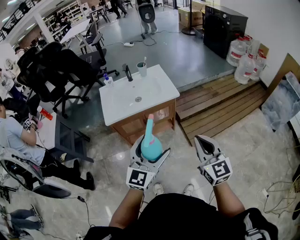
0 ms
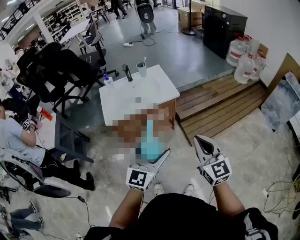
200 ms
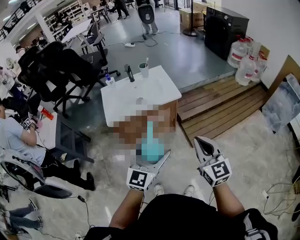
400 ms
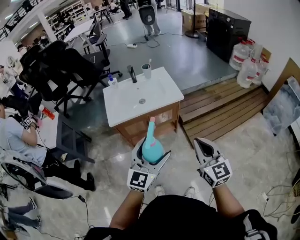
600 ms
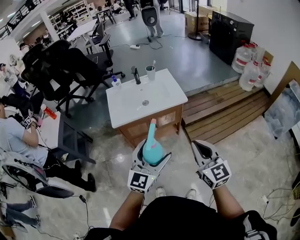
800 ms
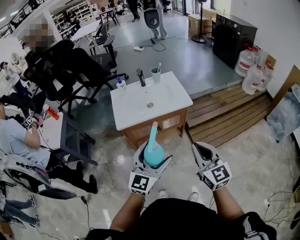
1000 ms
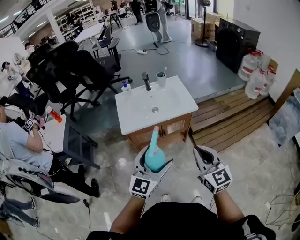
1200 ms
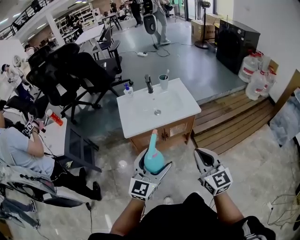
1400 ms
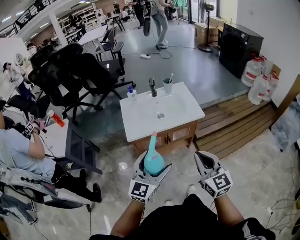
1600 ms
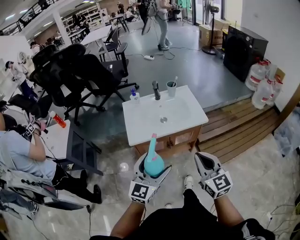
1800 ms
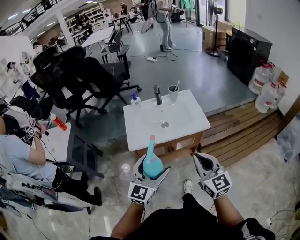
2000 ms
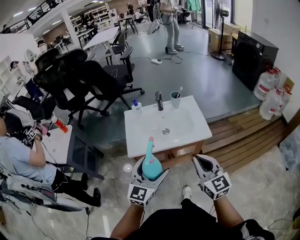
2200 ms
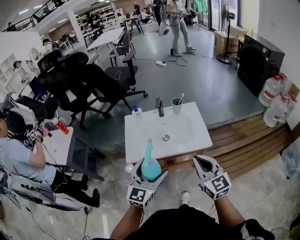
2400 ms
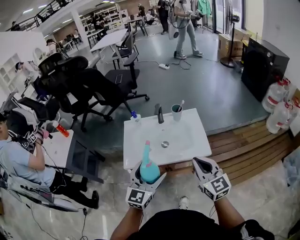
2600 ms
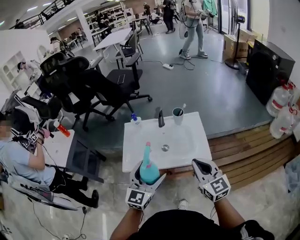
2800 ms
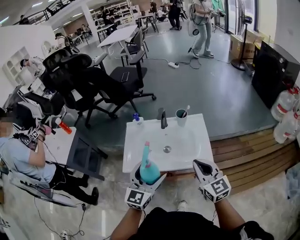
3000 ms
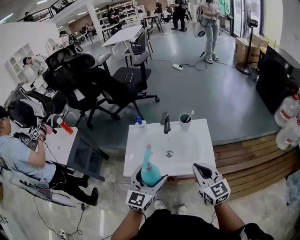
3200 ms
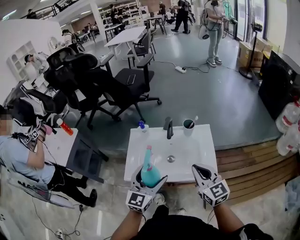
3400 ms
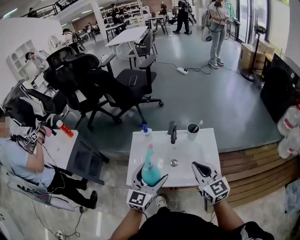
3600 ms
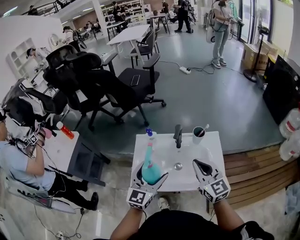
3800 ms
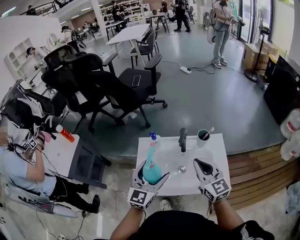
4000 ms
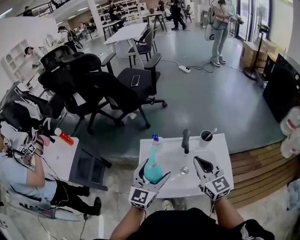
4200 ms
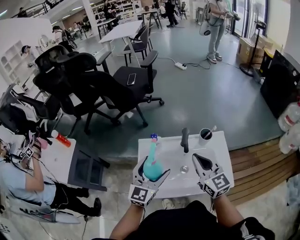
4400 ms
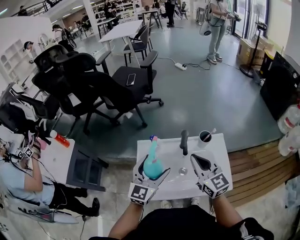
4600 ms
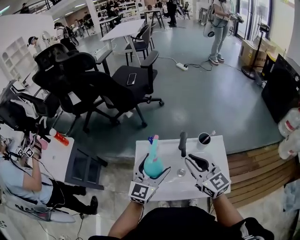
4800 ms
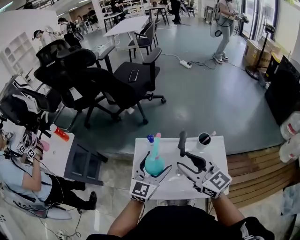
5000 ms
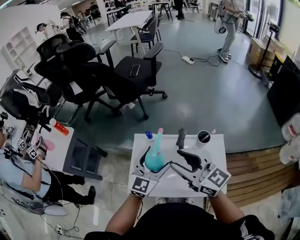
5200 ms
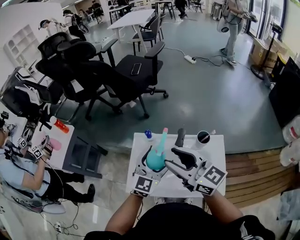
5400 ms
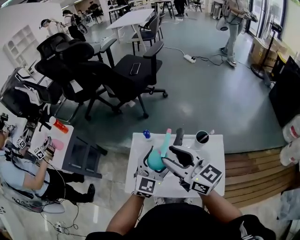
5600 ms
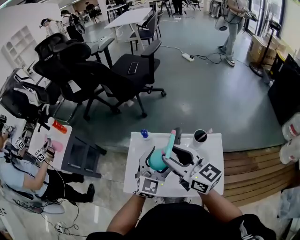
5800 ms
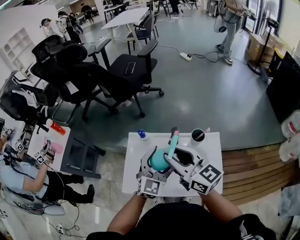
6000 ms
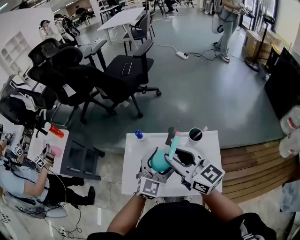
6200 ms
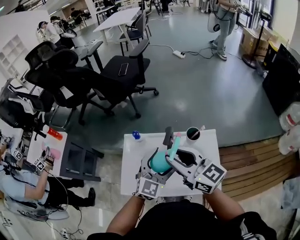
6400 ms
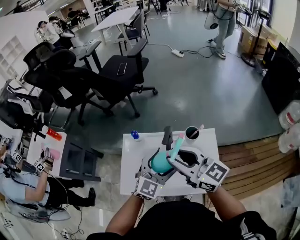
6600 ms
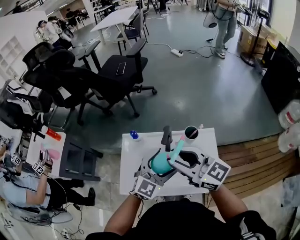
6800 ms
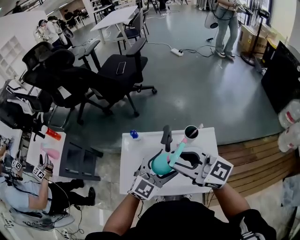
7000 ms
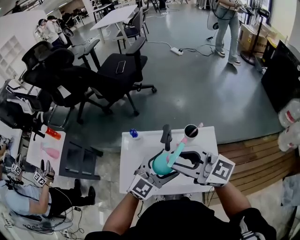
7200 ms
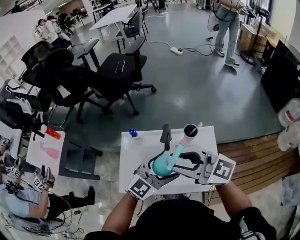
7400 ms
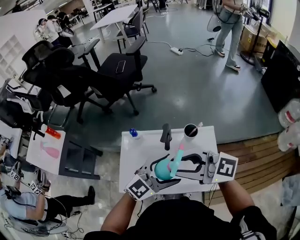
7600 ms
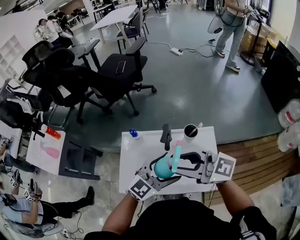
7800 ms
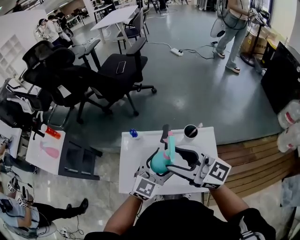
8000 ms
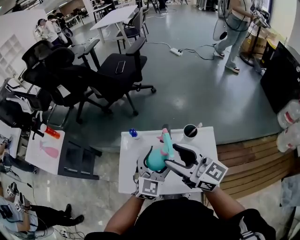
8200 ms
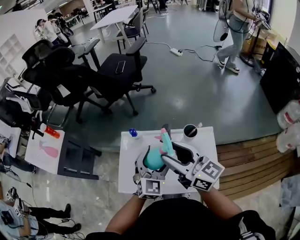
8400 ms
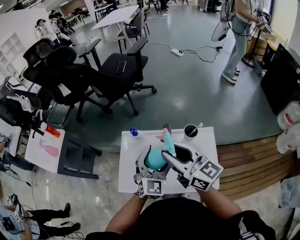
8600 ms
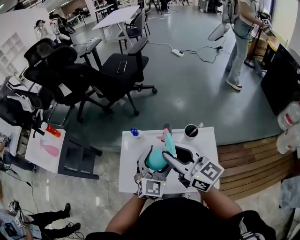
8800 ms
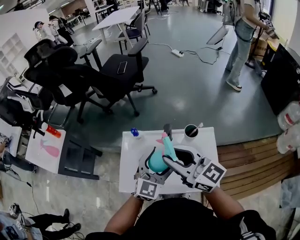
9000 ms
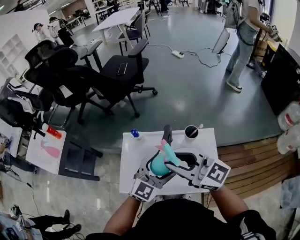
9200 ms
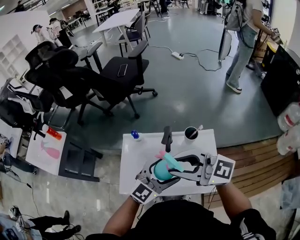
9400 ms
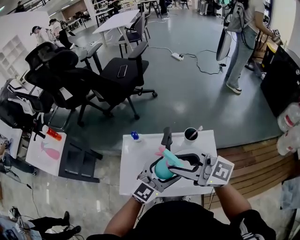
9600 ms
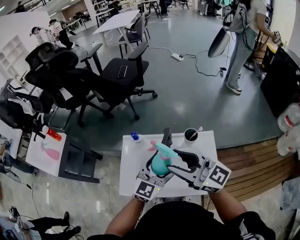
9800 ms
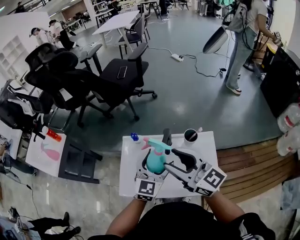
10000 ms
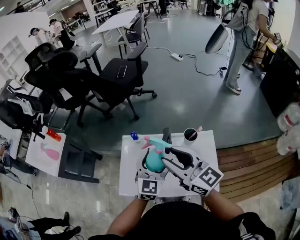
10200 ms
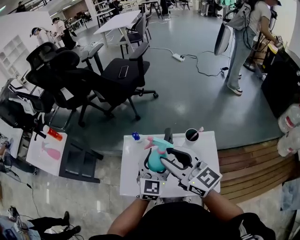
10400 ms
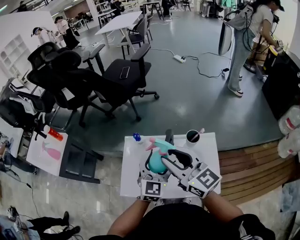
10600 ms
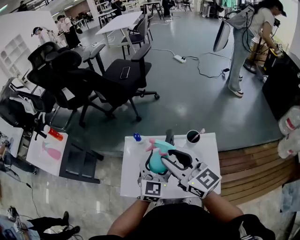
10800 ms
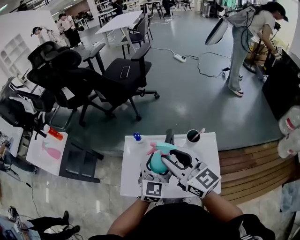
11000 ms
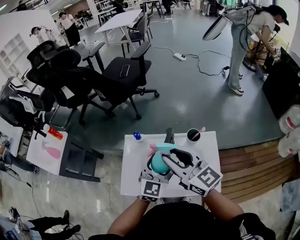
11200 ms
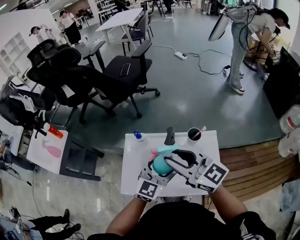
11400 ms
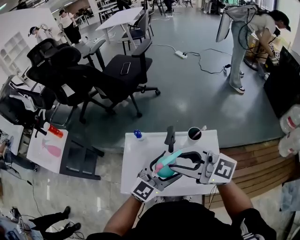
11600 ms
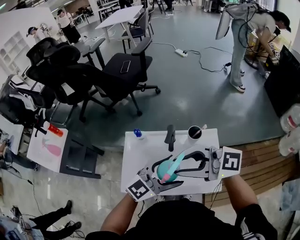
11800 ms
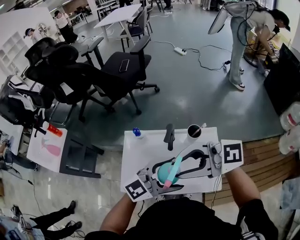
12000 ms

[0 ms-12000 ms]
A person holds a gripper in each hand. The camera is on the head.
0 ms to 1600 ms: Both grippers move to the left, some 15 cm.
1600 ms to 3000 ms: The two grippers go approximately 25 cm forward.
3000 ms to 4400 ms: Both grippers travel together forward and to the left, roughly 25 cm.
4400 ms to 6000 ms: The right gripper shifts by approximately 5 cm, changes its angle by about 30 degrees, and opens up; the left gripper shifts some 10 cm to the right.
6000 ms to 7600 ms: The left gripper moves approximately 10 cm, and changes its angle by some 40 degrees, while the right gripper shifts by approximately 10 cm, and changes its angle by about 30 degrees.
7600 ms to 9000 ms: The right gripper swivels about 30 degrees, and opens and closes again. Meanwhile the left gripper swivels roughly 30 degrees.
10400 ms to 12000 ms: The right gripper changes place by some 10 cm, and changes its angle by roughly 50 degrees. The left gripper shifts by about 15 cm, and rotates some 50 degrees.

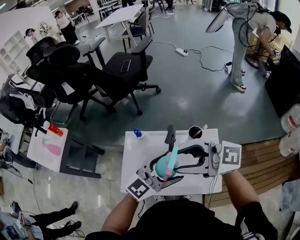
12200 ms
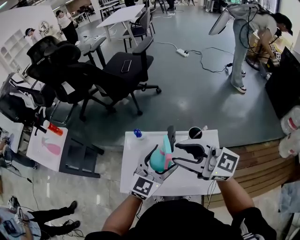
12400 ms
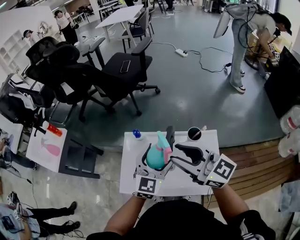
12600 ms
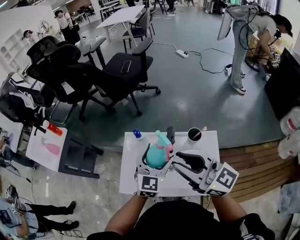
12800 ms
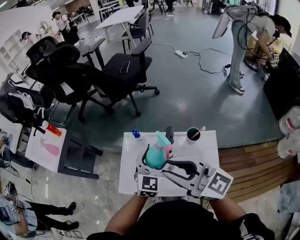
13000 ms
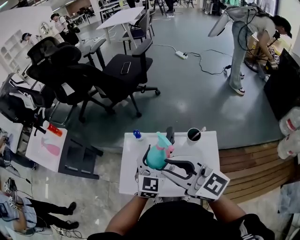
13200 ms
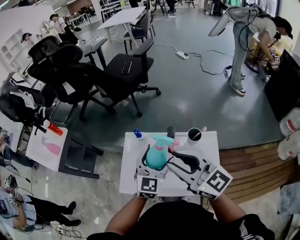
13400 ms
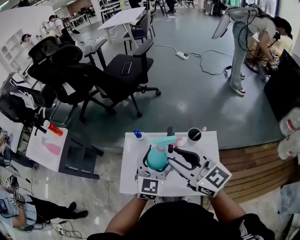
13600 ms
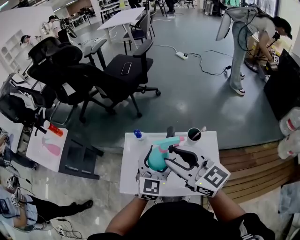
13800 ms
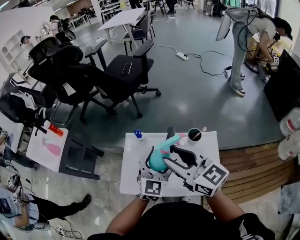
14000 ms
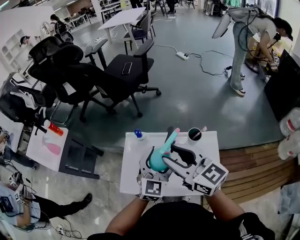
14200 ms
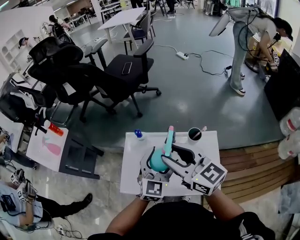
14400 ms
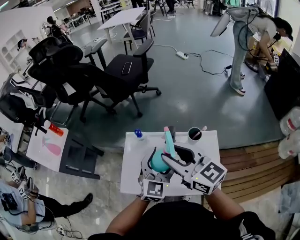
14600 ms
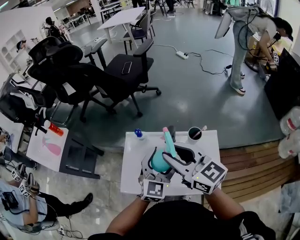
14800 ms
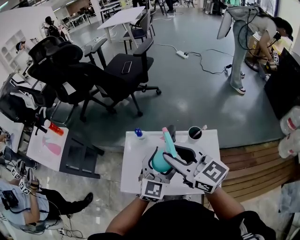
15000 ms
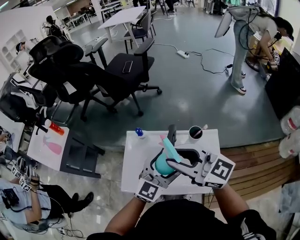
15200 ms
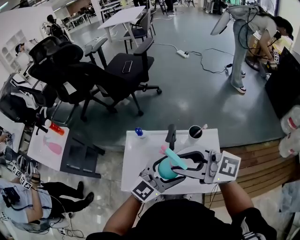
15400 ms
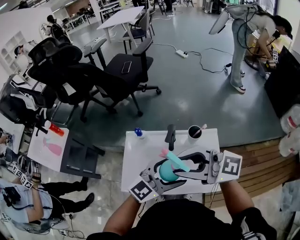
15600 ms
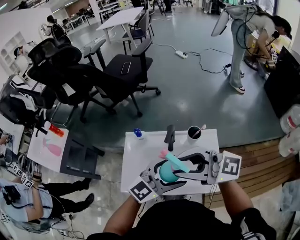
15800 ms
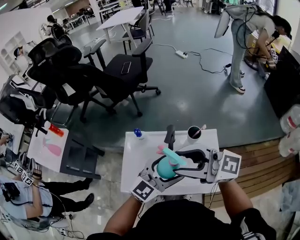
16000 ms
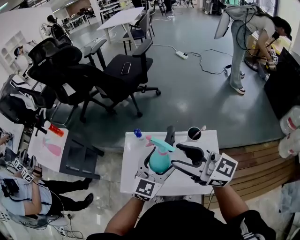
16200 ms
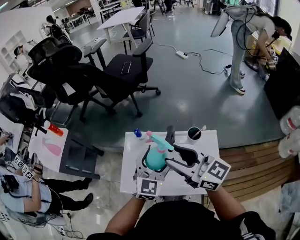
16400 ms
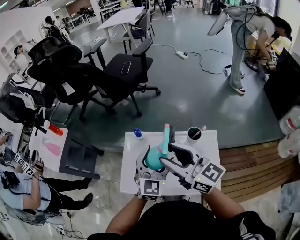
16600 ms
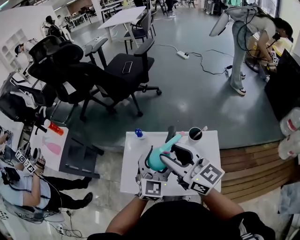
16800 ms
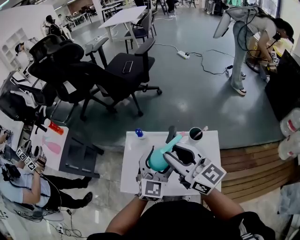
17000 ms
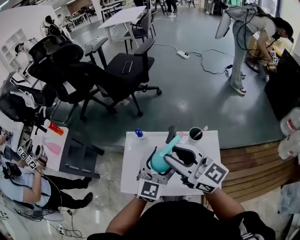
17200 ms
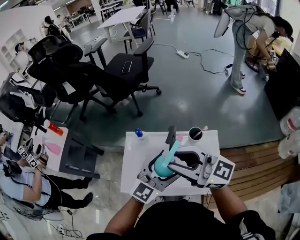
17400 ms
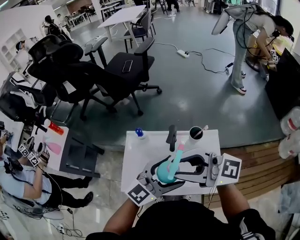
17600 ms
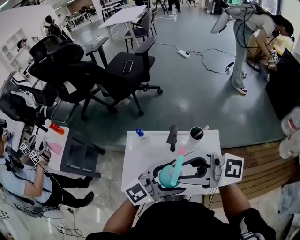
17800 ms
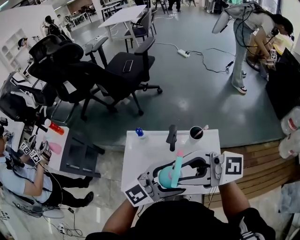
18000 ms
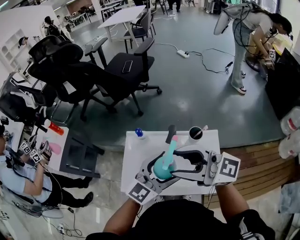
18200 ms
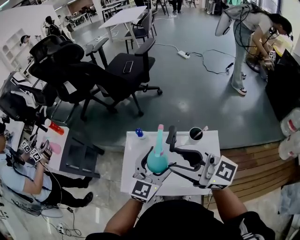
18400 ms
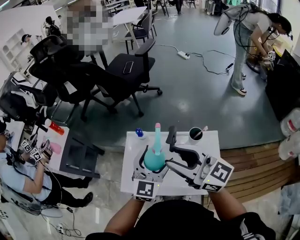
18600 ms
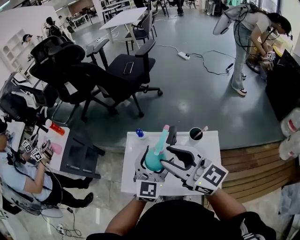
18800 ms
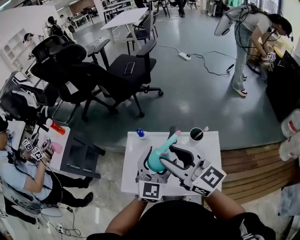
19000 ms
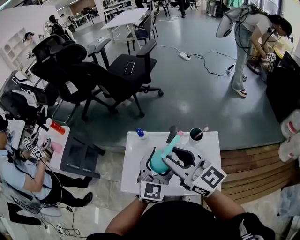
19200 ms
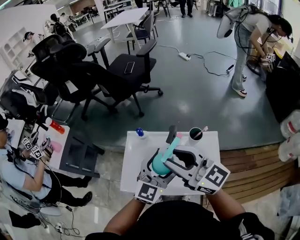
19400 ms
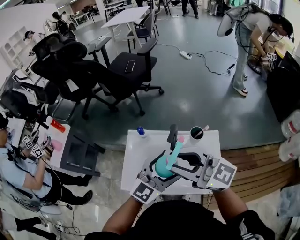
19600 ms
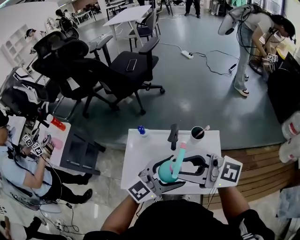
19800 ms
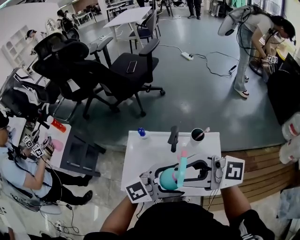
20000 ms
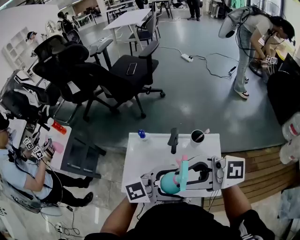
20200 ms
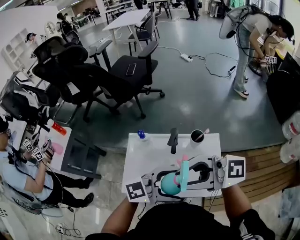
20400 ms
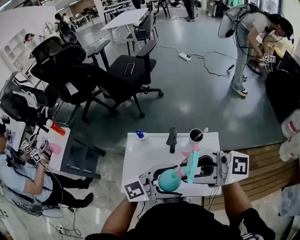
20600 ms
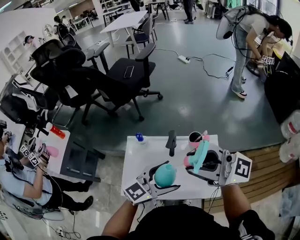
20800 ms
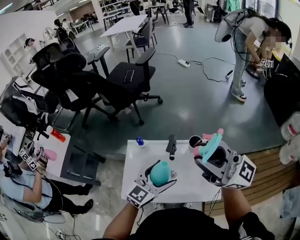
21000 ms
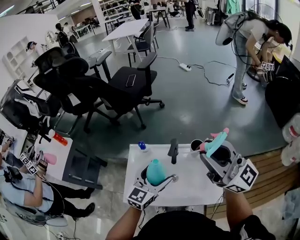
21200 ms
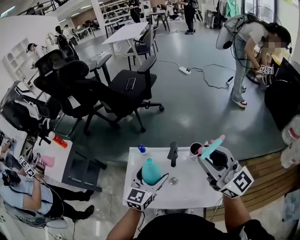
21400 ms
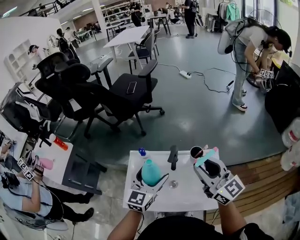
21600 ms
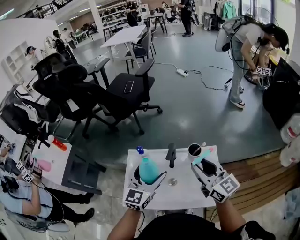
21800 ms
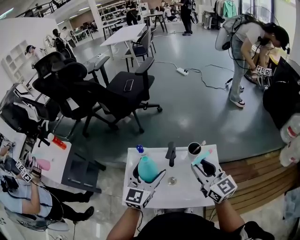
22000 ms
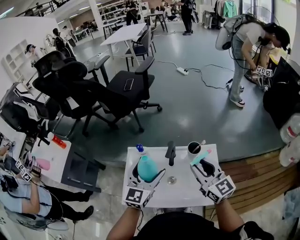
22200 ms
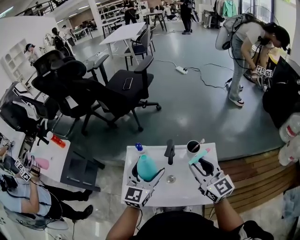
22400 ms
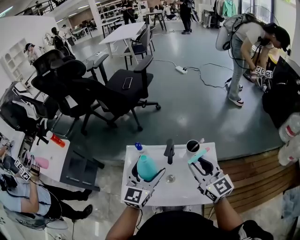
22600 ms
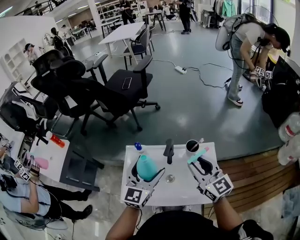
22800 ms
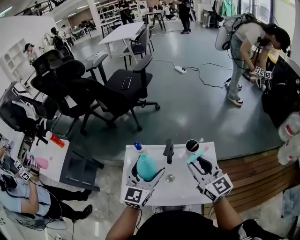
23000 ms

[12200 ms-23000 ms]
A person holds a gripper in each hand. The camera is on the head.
12200 ms to 13800 ms: The left gripper changes place by about 10 cm, and rotates roughly 40 degrees. Meanwhile the right gripper rotates roughly 40 degrees.
13800 ms to 15200 ms: The left gripper moves about 5 cm.
15200 ms to 16800 ms: The left gripper changes place by roughly 5 cm, and rotates roughly 20 degrees.
18400 ms to 20000 ms: The left gripper shifts by roughly 15 cm, and rotates some 40 degrees. Meanwhile the right gripper changes place by some 5 cm, and swivels approximately 20 degrees.
20000 ms to 21400 ms: The left gripper ends up roughly 15 cm from where it was, and turns by about 50 degrees. Meanwhile the right gripper ends up roughly 15 cm from where it was, and swivels roughly 50 degrees.
21400 ms to 23000 ms: The right gripper is displaced downward by approximately 10 cm.

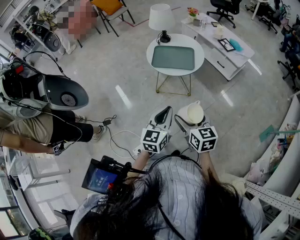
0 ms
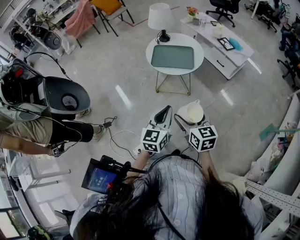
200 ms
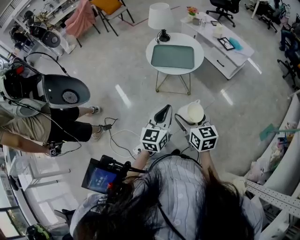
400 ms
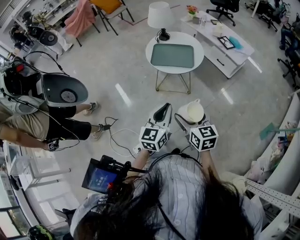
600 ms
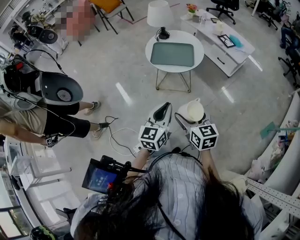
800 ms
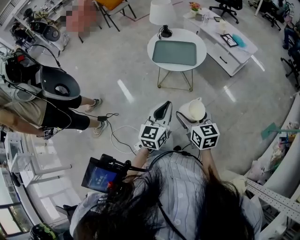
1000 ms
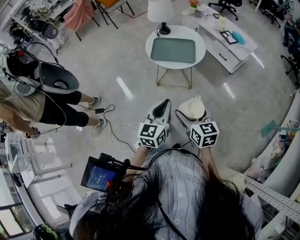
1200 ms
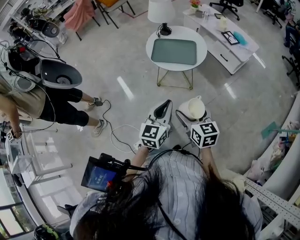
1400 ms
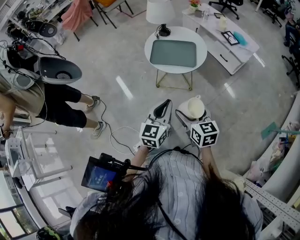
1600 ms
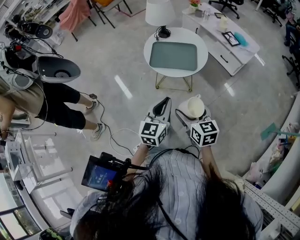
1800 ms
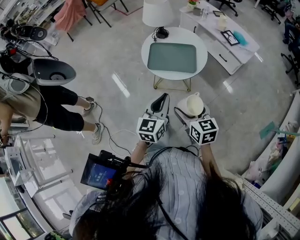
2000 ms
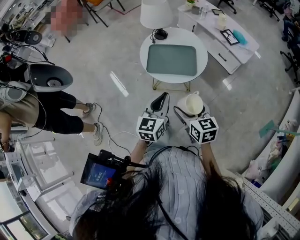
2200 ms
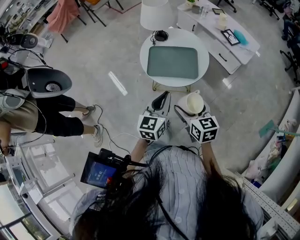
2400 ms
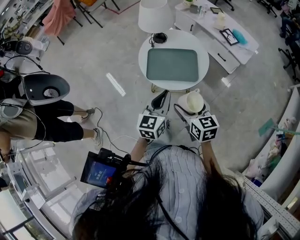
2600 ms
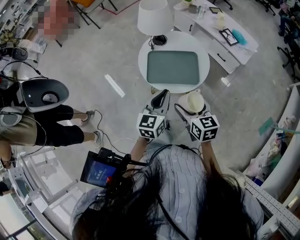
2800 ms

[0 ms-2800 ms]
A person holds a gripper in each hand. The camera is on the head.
0 ms to 1400 ms: The grippers move only a little.
1400 ms to 2800 ms: Both grippers move forward, some 25 cm.
